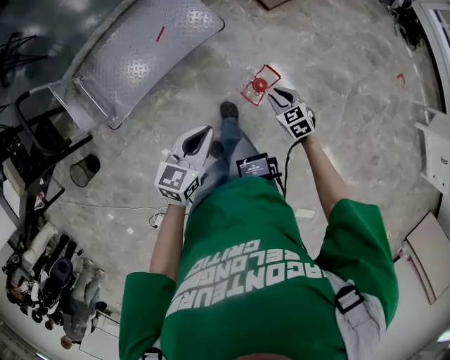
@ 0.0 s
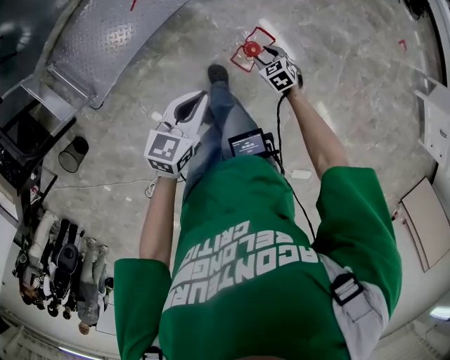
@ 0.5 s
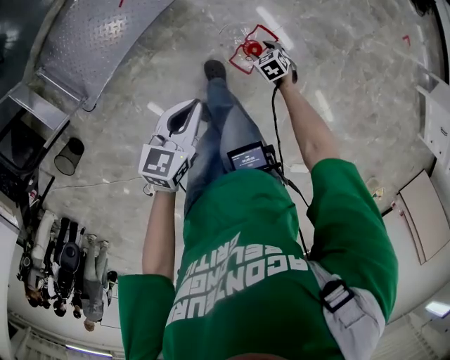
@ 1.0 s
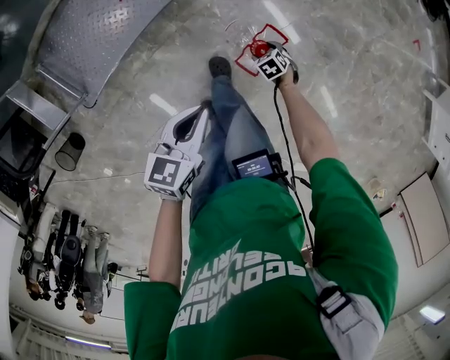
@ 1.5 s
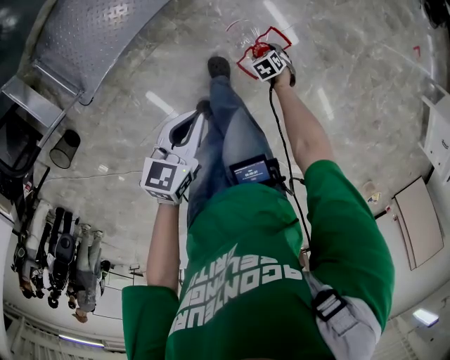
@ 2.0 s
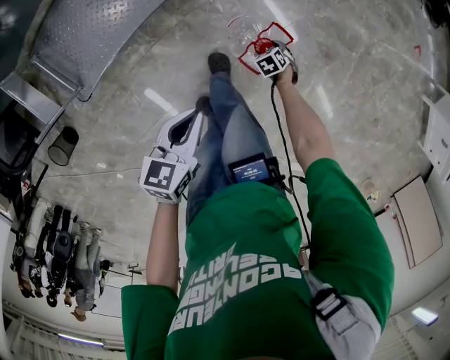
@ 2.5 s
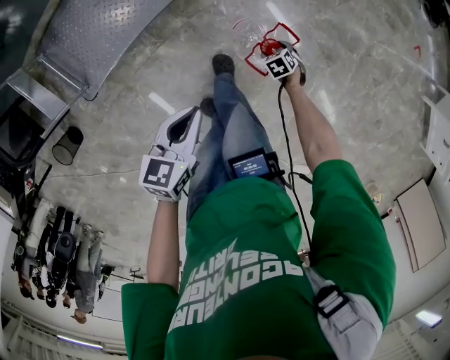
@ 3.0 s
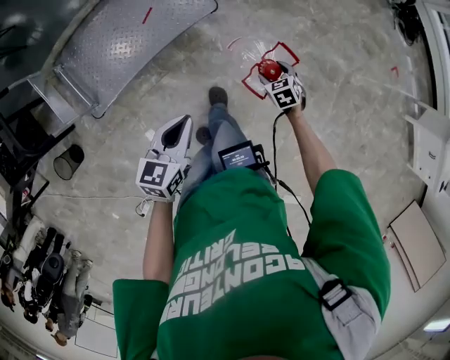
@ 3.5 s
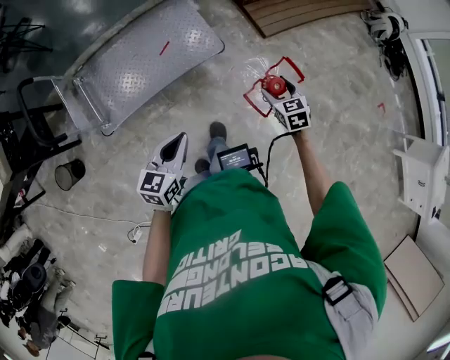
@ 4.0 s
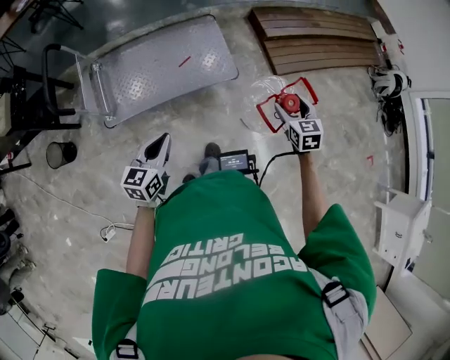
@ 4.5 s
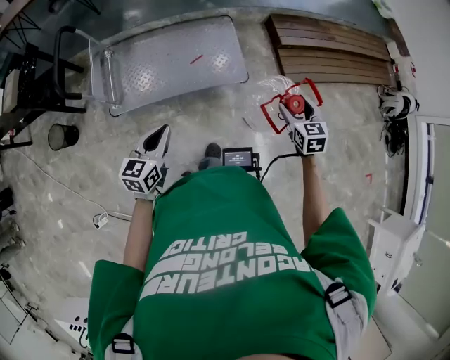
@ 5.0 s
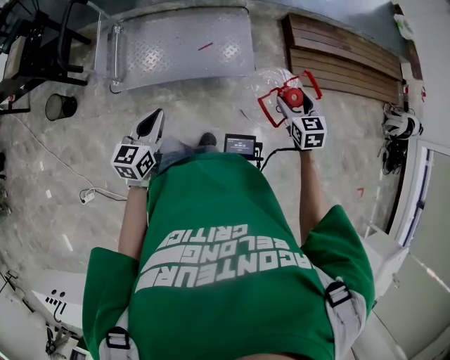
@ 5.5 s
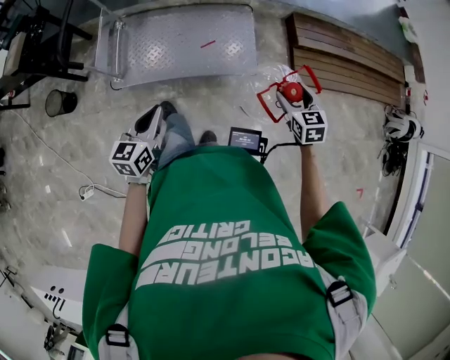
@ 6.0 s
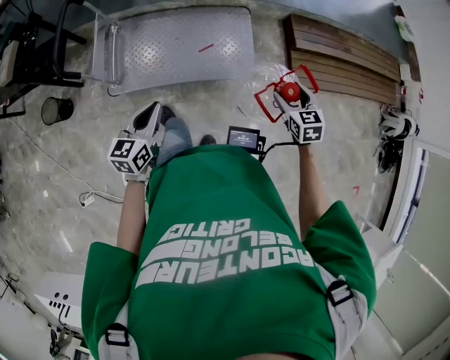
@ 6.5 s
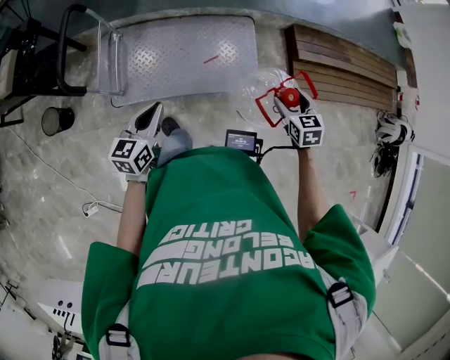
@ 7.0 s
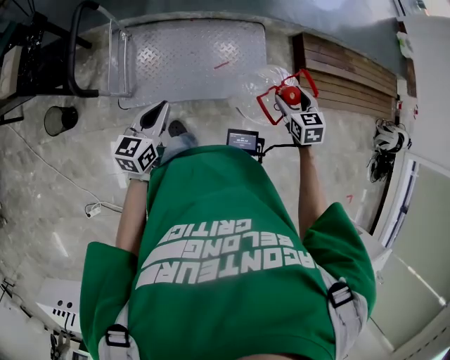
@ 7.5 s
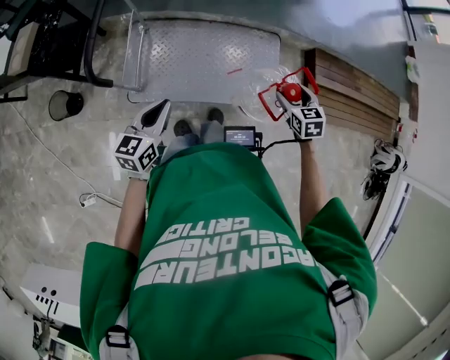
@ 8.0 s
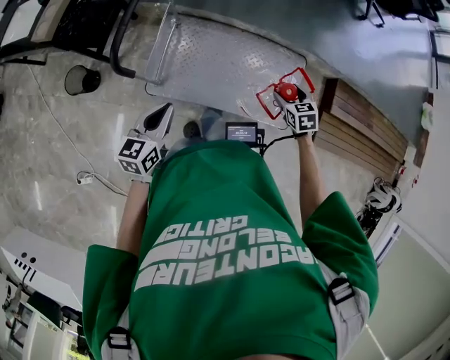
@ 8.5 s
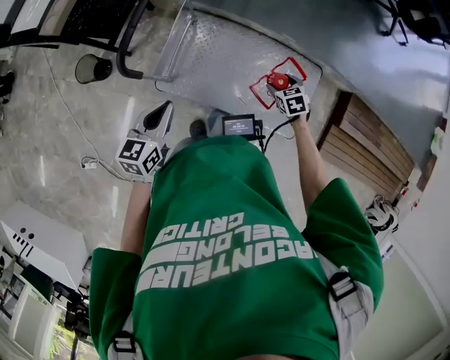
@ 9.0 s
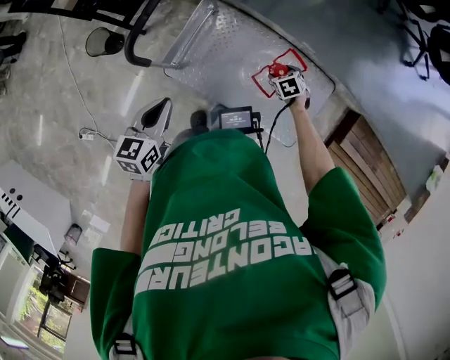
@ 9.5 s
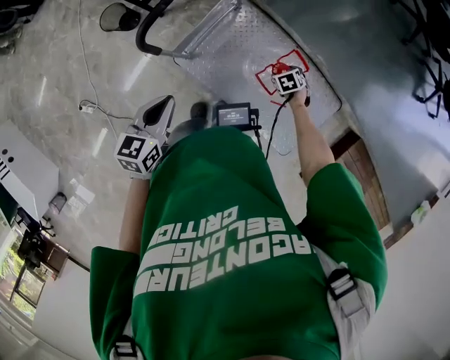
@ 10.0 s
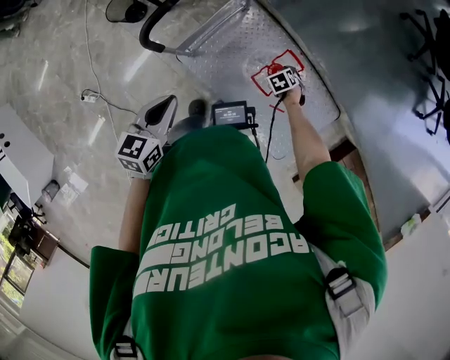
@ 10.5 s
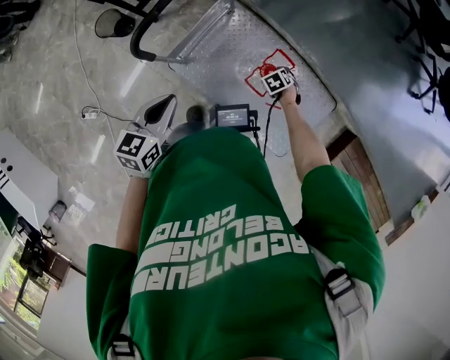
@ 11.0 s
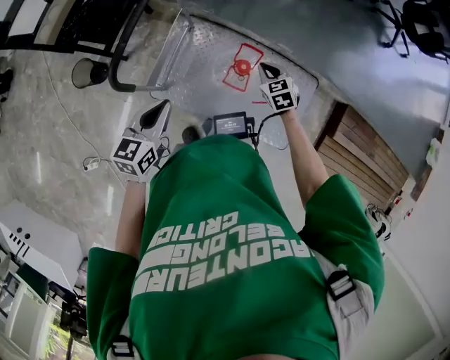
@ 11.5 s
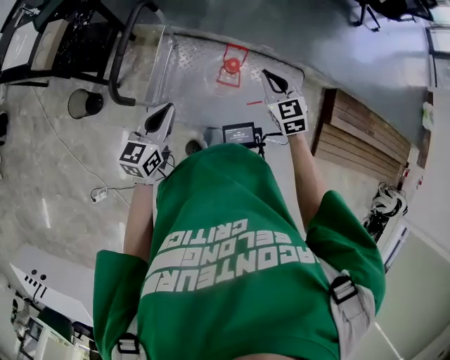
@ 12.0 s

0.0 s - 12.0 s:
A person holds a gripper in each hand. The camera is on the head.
0.0 s - 2.0 s: The right gripper heads downward, covering roughly 30 cm, rotates some 30 degrees, and opens; the left gripper shifts some 10 cm downward.
2.0 s - 4.0 s: The left gripper heads upward, covering roughly 15 cm, and swivels about 20 degrees. The right gripper heads upward, covering roughly 40 cm, and angles its fingers upward, by roughly 40 degrees.
4.0 s - 6.0 s: The left gripper shifts by some 10 cm, and swivels some 30 degrees; the right gripper moves some 15 cm, and changes its angle by roughly 20 degrees.
6.0 s - 8.0 s: Both grippers travel together to the left and forward, approximately 30 cm.
8.0 s - 10.0 s: The left gripper moves some 15 cm, and changes its angle by roughly 40 degrees, while the right gripper changes place by some 50 cm, and angles its fingers downward, by about 30 degrees.
10.0 s - 12.0 s: The left gripper swivels roughly 30 degrees. The right gripper goes about 35 cm upward, tips its fingers upward by about 50 degrees, and closes.

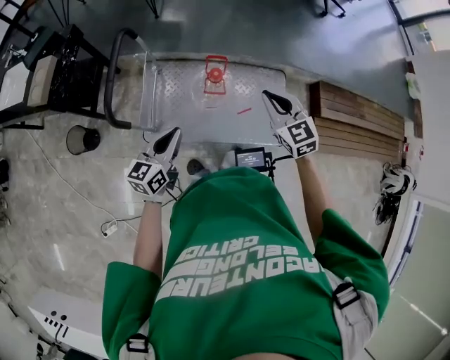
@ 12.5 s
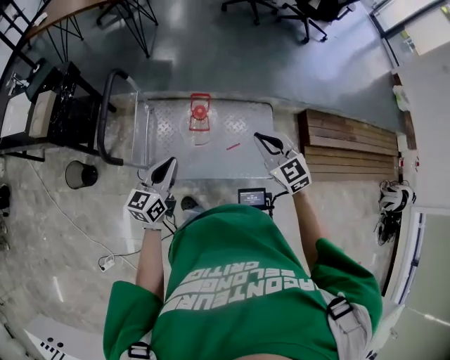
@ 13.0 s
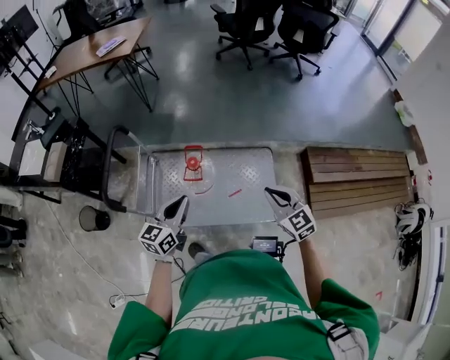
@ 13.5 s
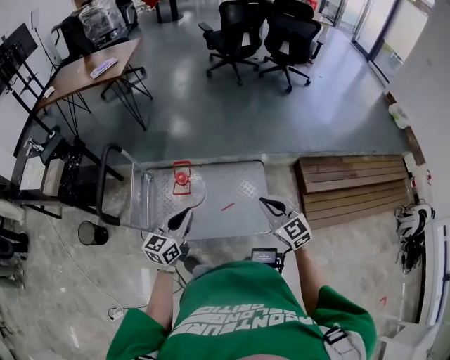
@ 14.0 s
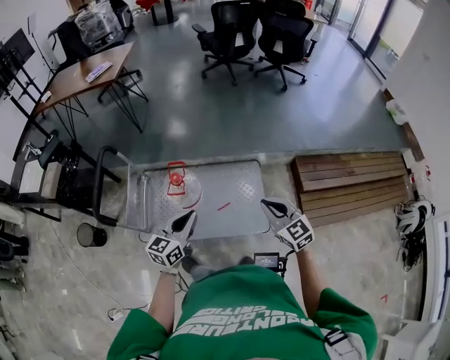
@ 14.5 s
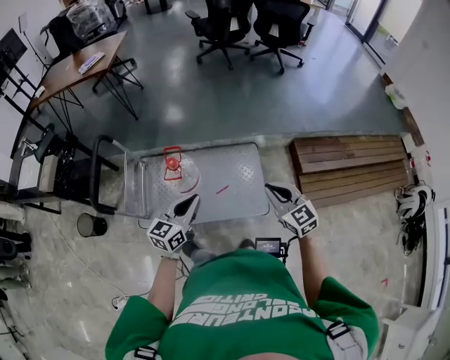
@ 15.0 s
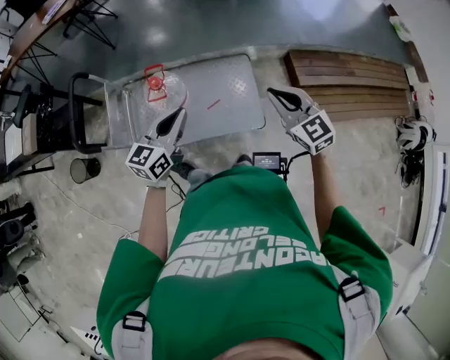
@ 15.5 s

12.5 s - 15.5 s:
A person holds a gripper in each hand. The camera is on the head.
12.5 s - 14.0 s: The two grippers go some 25 cm to the right.
14.0 s - 15.5 s: The grippers both shift to the right by approximately 5 cm.

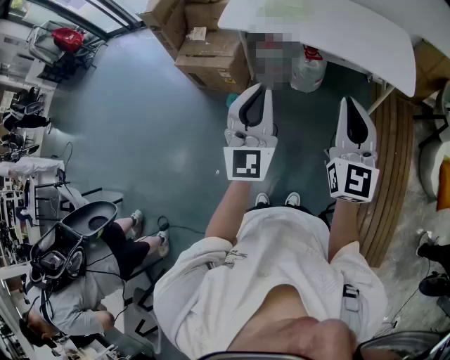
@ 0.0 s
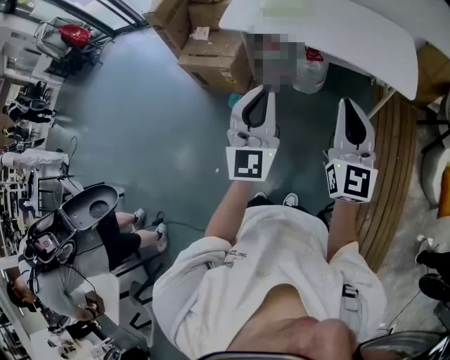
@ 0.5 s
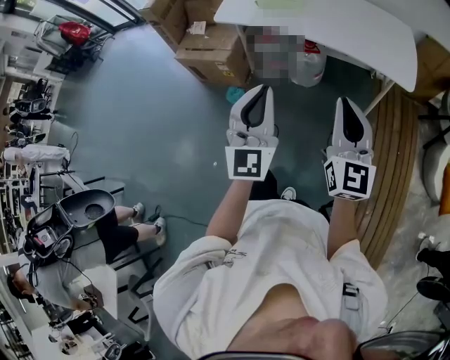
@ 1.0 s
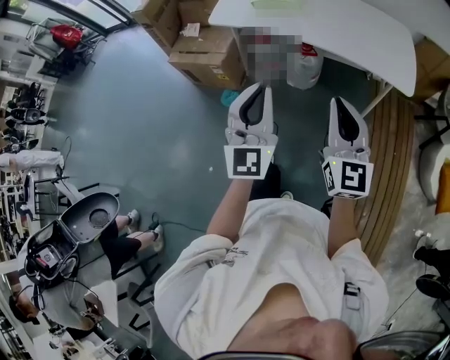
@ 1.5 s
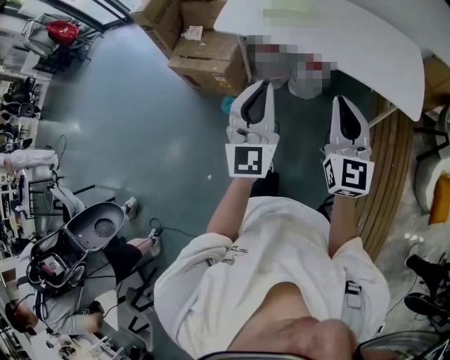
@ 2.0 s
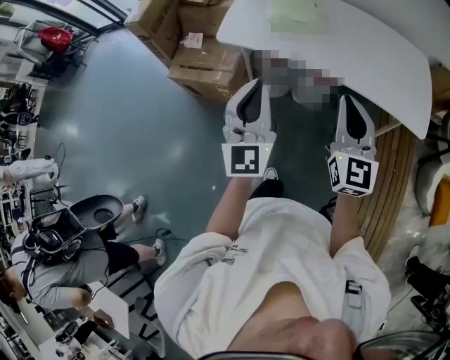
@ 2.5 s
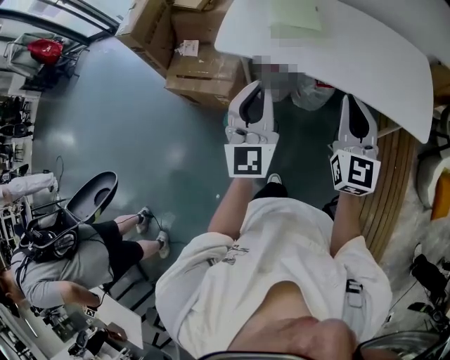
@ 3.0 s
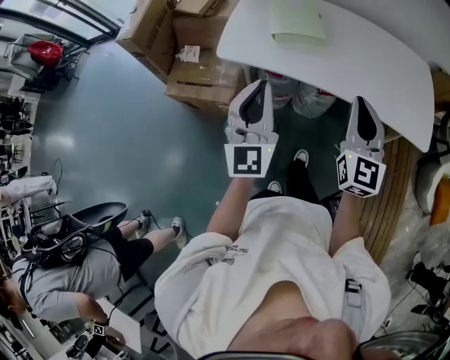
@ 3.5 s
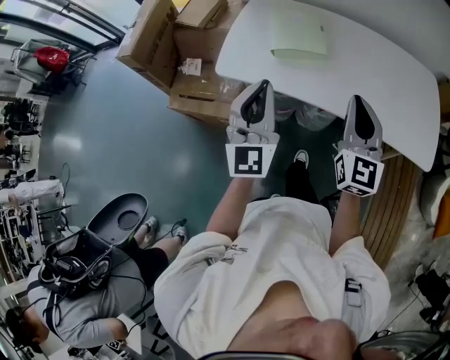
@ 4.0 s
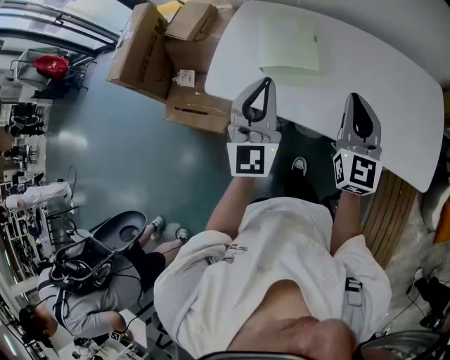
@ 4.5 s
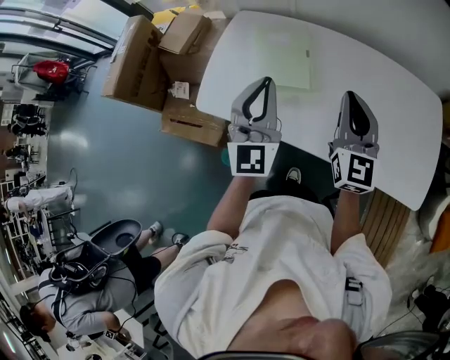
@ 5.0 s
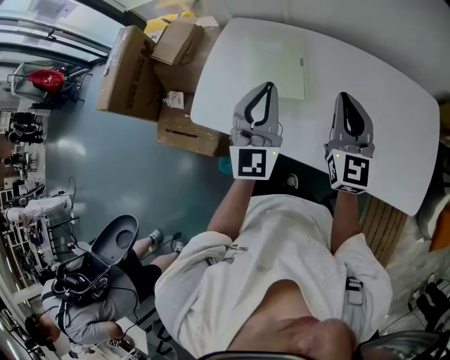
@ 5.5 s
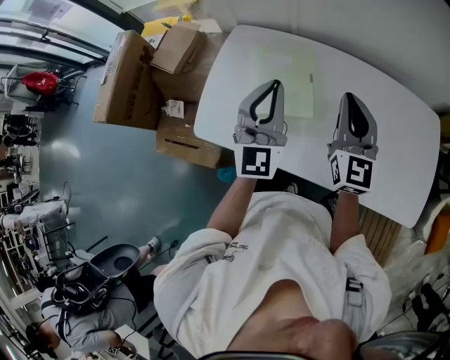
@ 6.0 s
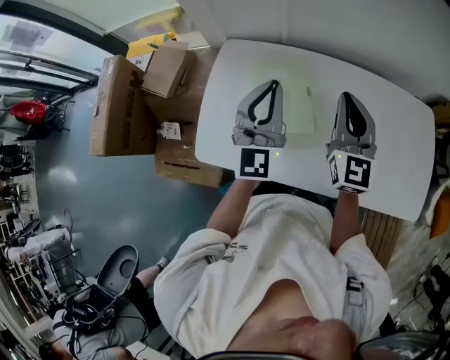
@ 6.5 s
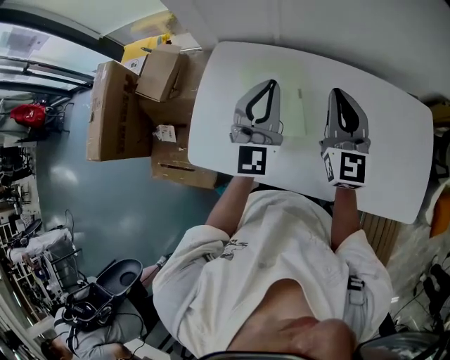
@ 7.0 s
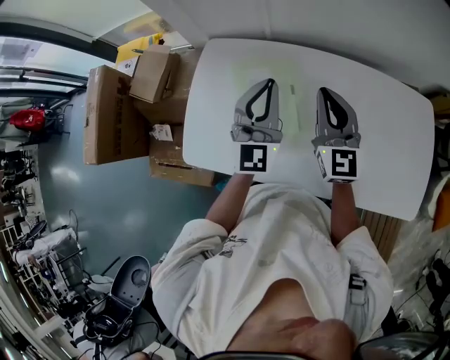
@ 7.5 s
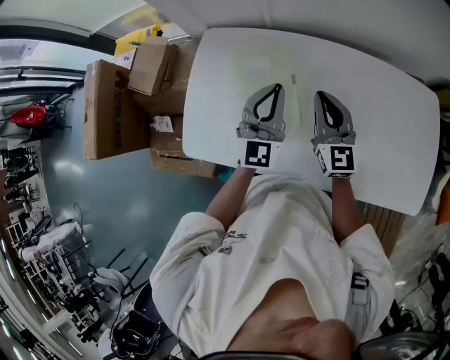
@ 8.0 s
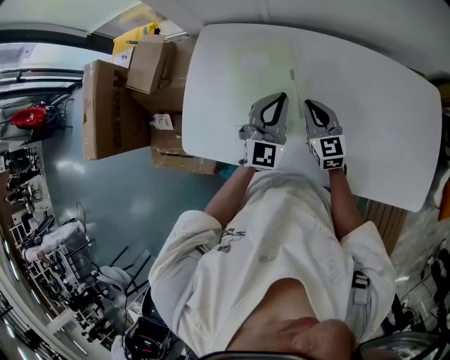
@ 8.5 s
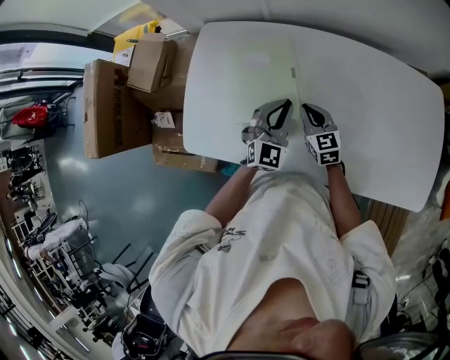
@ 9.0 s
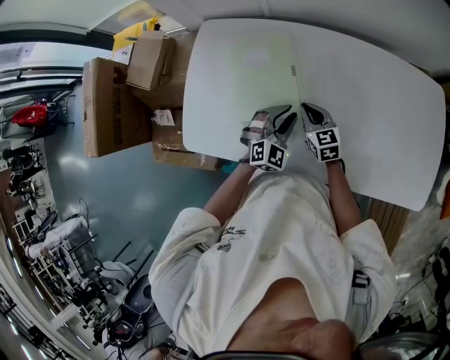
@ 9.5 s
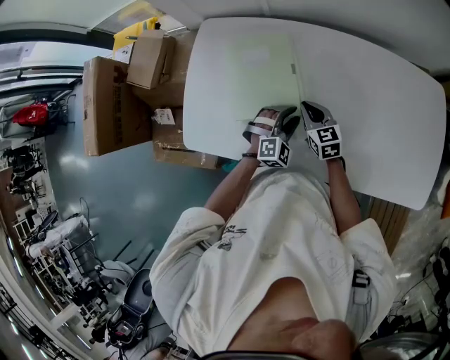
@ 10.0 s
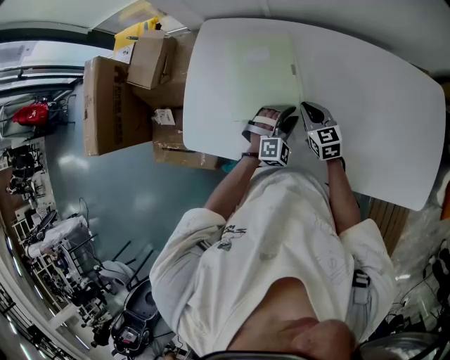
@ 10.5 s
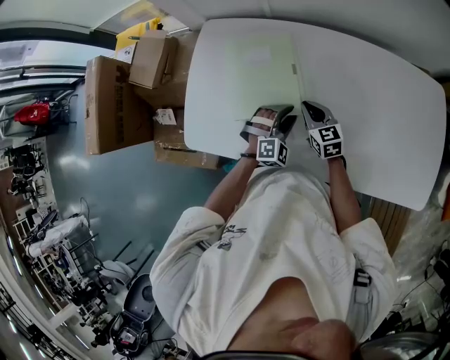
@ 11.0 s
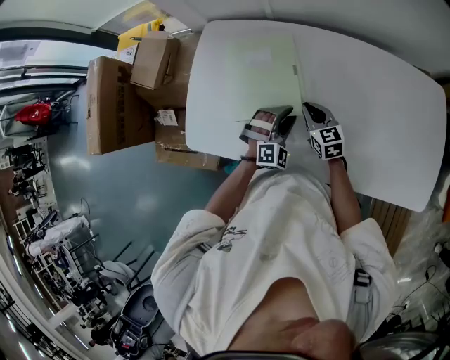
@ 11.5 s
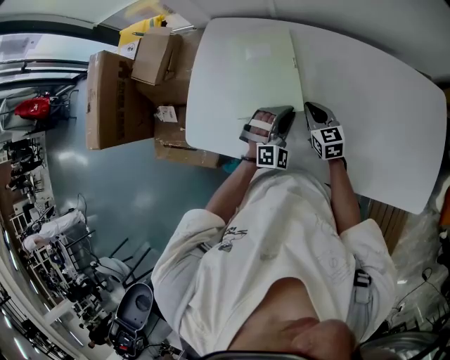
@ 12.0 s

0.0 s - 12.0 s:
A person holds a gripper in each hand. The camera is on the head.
0.0 s - 2.0 s: Both grippers travel together forward, approximately 15 cm.
2.0 s - 4.0 s: Both grippers travel together forward, approximately 30 cm.
4.0 s - 6.0 s: The two grippers go some 30 cm forward.
6.0 s - 8.0 s: The right gripper is displaced downward and forward by approximately 15 cm, while the left gripper is displaced downward, forward and to the right by approximately 15 cm.
8.0 s - 10.0 s: The grippers both shift downward by approximately 20 cm. The left gripper tilts its fingers about 40 degrees downward, and opens its fingers. Meanwhile the right gripper changes its angle by about 30 degrees.
10.0 s - 12.0 s: The left gripper ends up about 5 cm from where it was.
